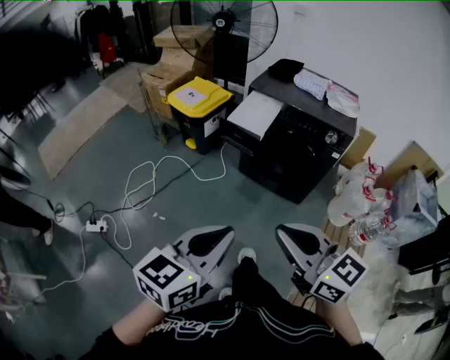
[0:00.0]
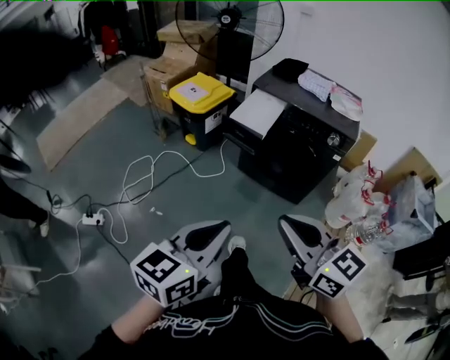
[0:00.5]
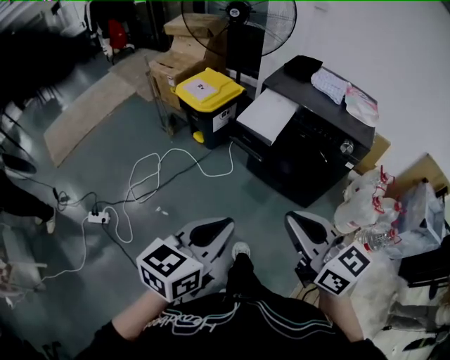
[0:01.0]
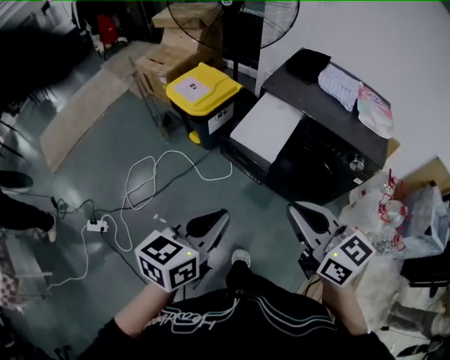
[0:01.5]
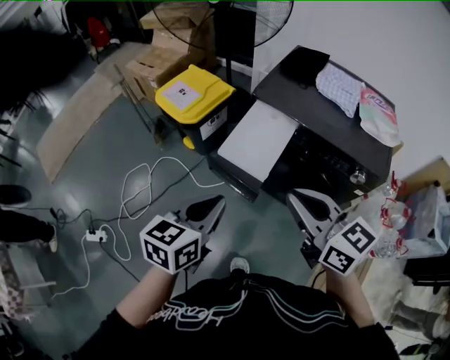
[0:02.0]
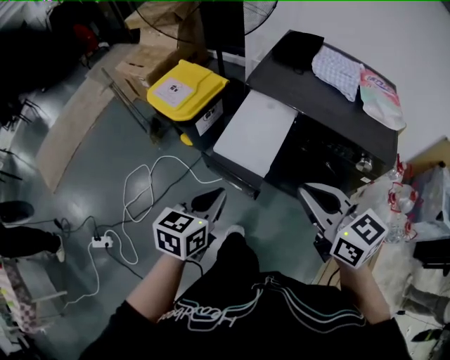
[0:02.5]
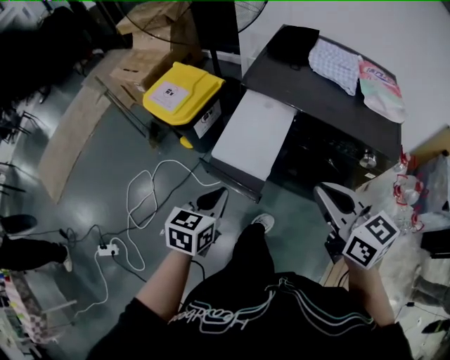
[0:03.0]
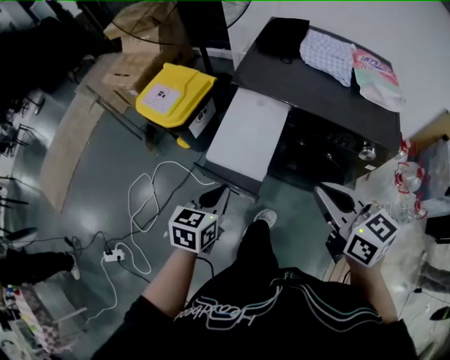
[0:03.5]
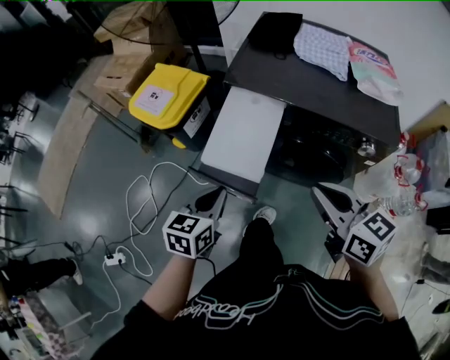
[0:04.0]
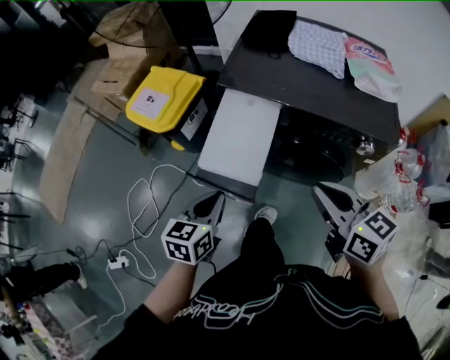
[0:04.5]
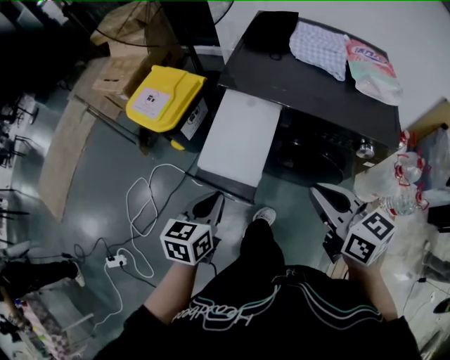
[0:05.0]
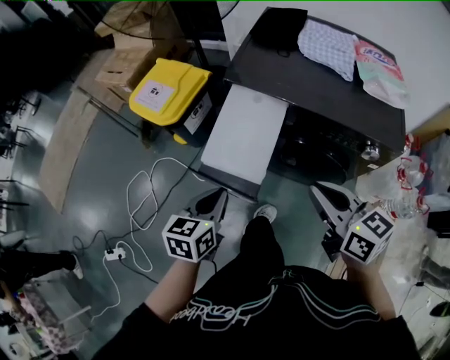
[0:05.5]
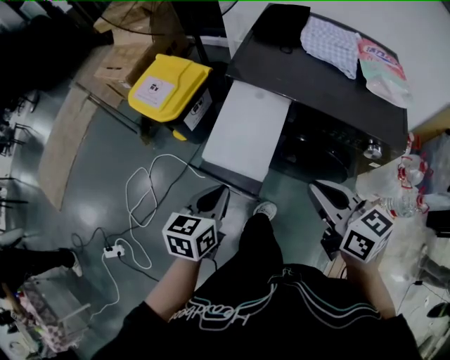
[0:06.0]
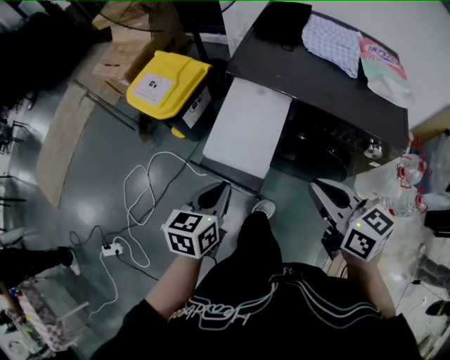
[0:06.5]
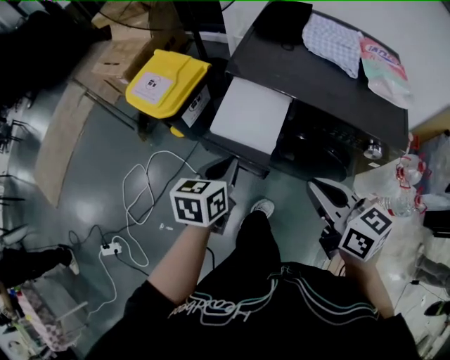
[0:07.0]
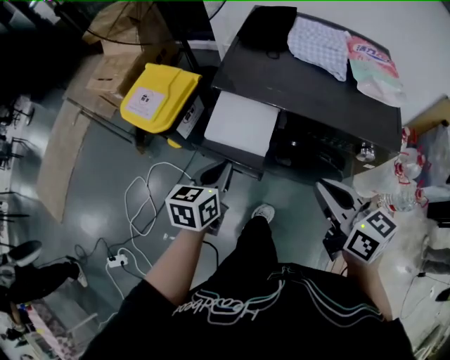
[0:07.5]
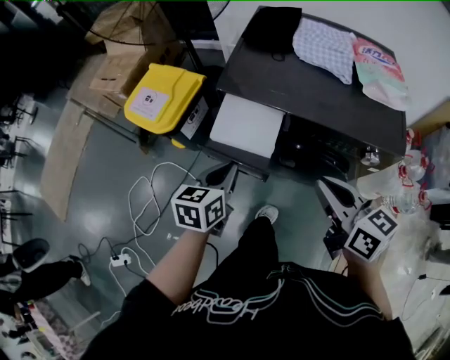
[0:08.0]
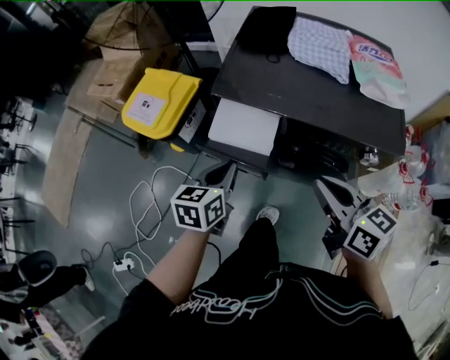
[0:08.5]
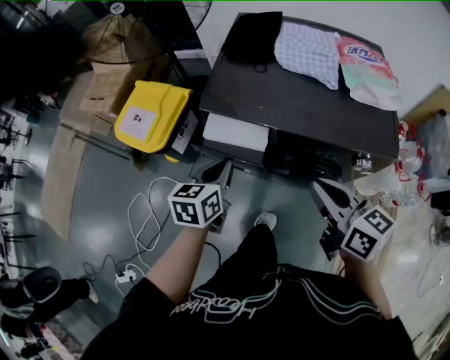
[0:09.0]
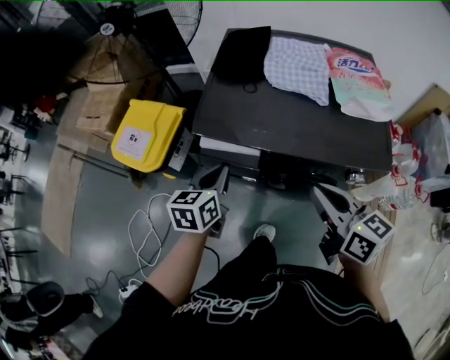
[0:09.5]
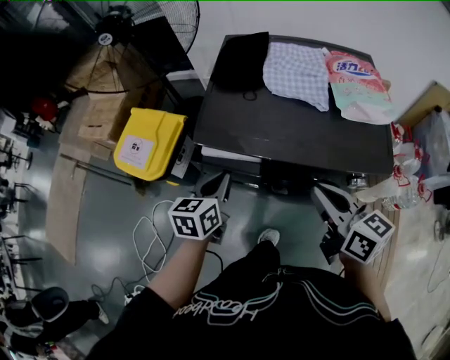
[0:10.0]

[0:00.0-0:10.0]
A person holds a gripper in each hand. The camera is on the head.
0:00.0 to 0:02.0: The two grippers go about 40 cm forward.
0:02.0 to 0:04.0: The left gripper goes approximately 15 cm downward and forward. The right gripper heads downward and to the right, covering some 10 cm.
0:04.0 to 0:06.0: The grippers move only a little.
0:06.0 to 0:08.0: The right gripper changes place by some 5 cm. Meanwhile the left gripper goes some 10 cm forward.
0:08.0 to 0:10.0: The left gripper is displaced forward by roughly 10 cm; the right gripper is displaced forward and to the right by about 10 cm.

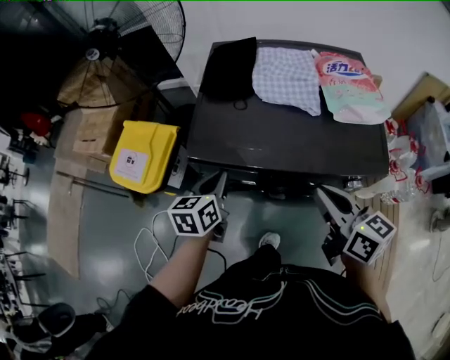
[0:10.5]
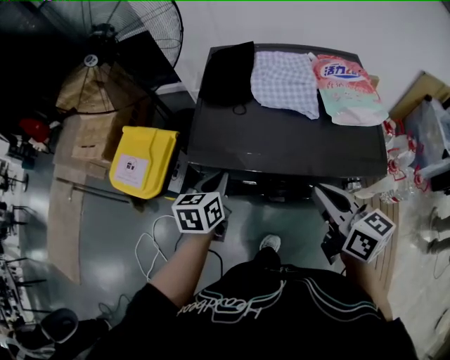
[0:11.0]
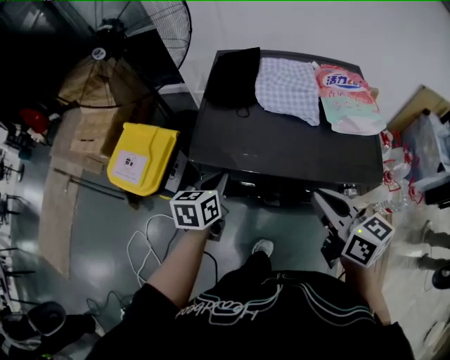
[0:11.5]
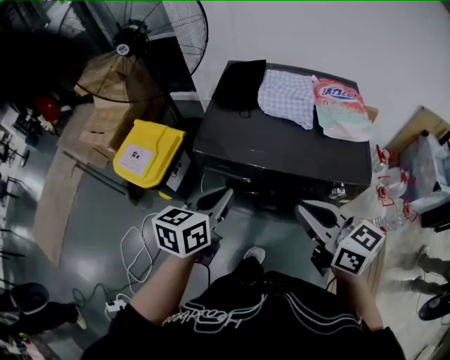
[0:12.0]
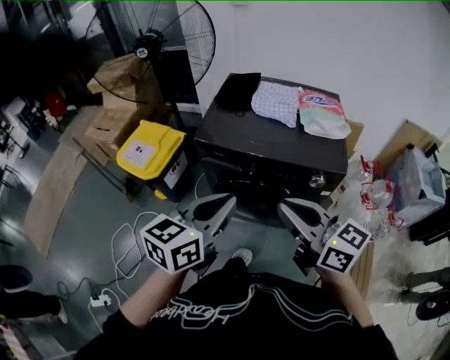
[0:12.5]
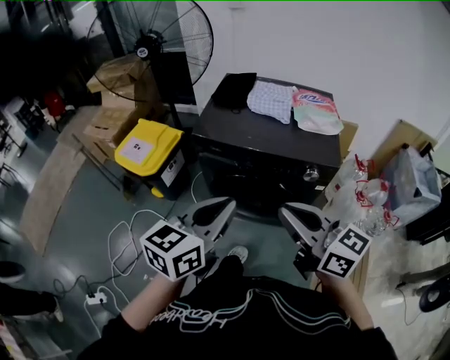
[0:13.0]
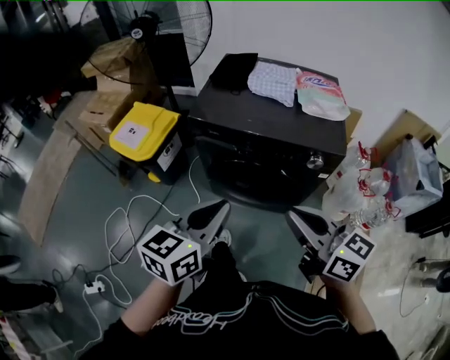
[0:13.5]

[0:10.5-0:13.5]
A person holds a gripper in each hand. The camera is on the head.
0:10.5 to 0:12.0: The right gripper is displaced backward and upward by about 10 cm; the left gripper moves backward and upward, some 15 cm.
0:12.0 to 0:13.5: The grippers both shift backward by roughly 20 cm.

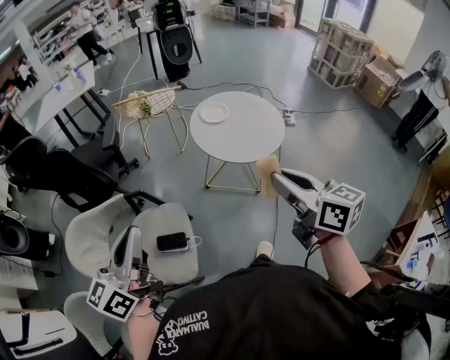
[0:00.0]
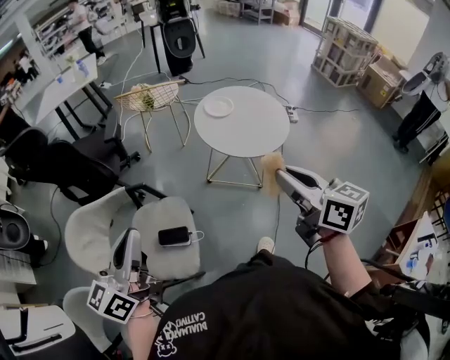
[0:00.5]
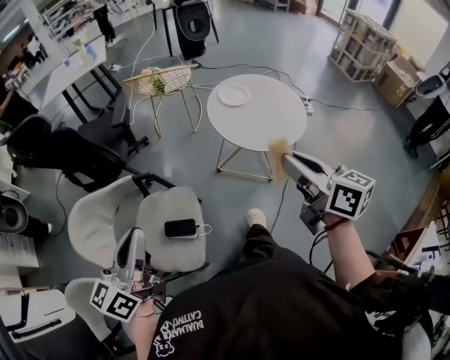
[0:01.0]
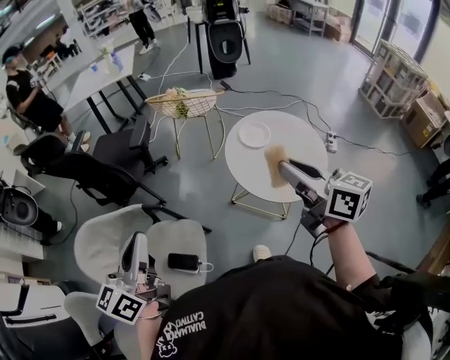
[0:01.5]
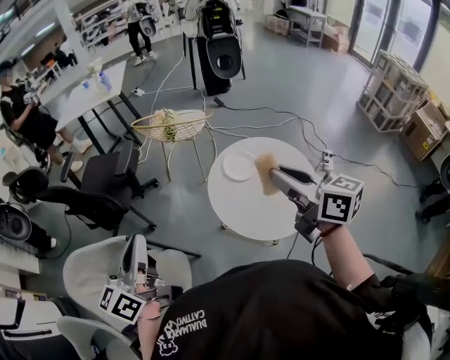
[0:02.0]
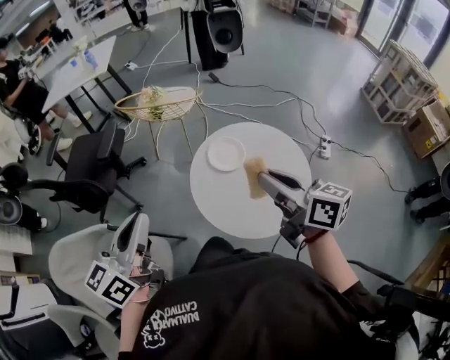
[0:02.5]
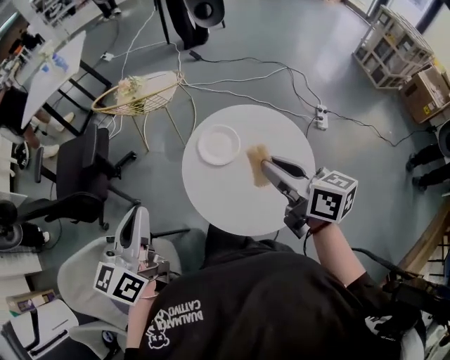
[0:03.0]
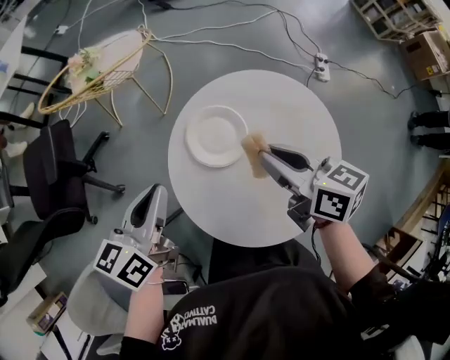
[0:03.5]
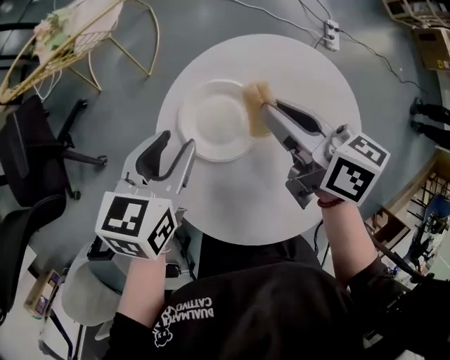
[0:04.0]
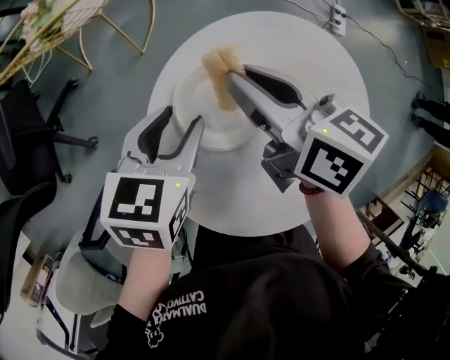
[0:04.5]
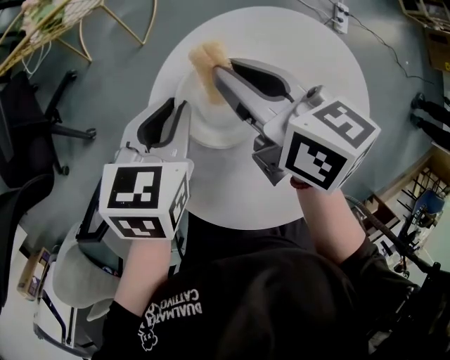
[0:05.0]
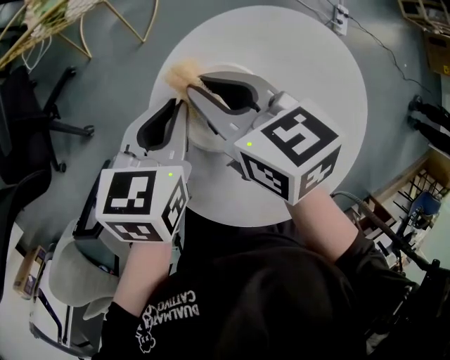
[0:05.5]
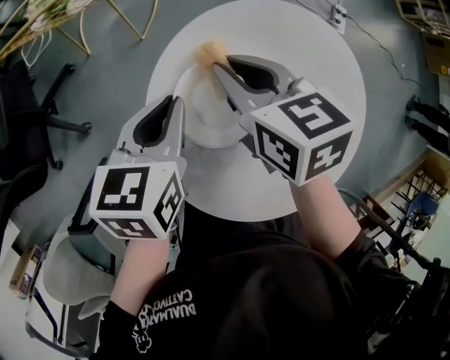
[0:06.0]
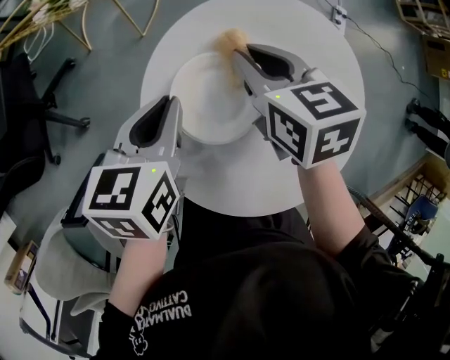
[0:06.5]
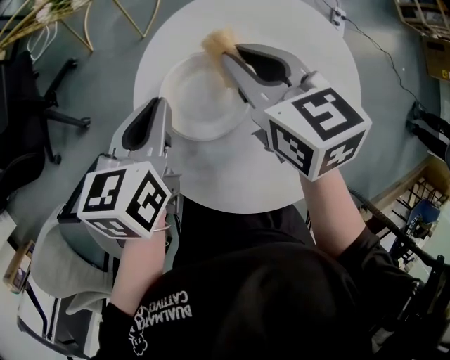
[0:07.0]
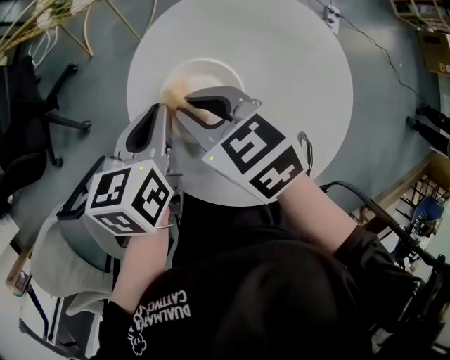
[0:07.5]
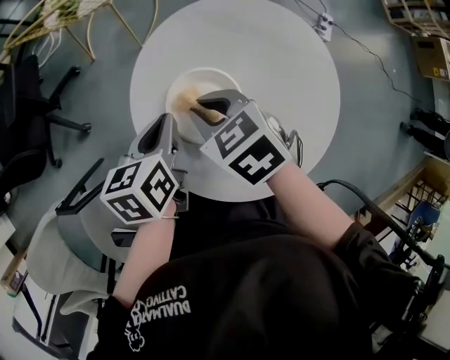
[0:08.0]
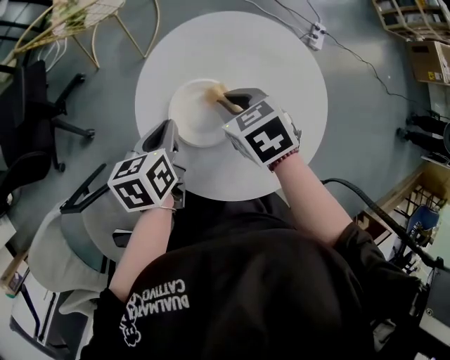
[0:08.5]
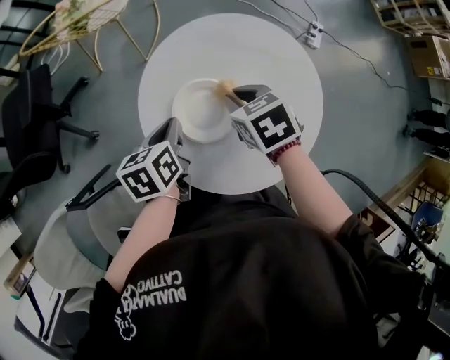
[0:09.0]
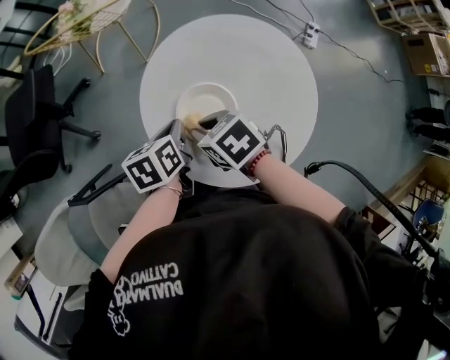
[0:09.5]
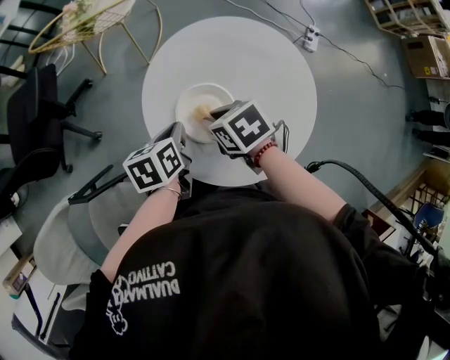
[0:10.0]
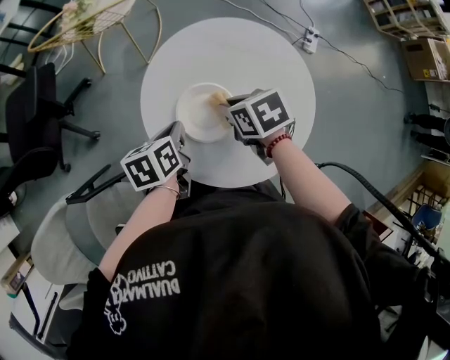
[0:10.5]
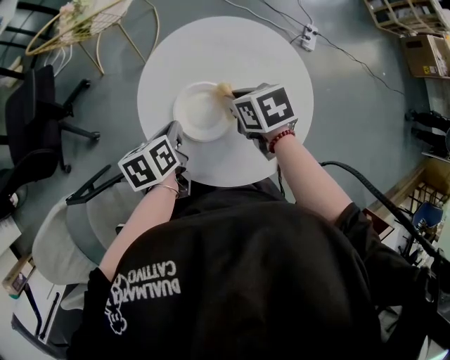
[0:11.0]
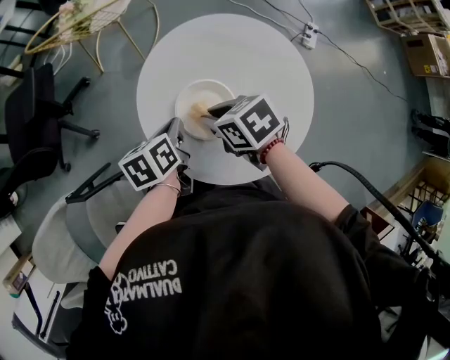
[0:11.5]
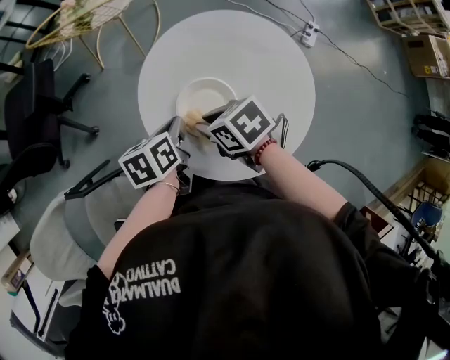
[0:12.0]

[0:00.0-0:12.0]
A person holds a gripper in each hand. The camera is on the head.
0:00.0 to 0:02.0: The left gripper travels forward and to the right by some 30 cm; the right gripper moves forward, some 35 cm.
0:02.0 to 0:04.0: The right gripper moves downward and forward, approximately 50 cm, and changes its angle by approximately 30 degrees. The left gripper moves forward, downward and to the right, approximately 60 cm, tips its fingers downward by some 50 degrees, and opens up.
0:04.0 to 0:06.0: The left gripper closes; the right gripper is displaced to the left by some 10 cm, and changes its angle by roughly 30 degrees.
0:06.0 to 0:08.0: Both grippers move backward, some 10 cm. The right gripper turns by approximately 30 degrees.
0:08.0 to 0:10.0: The right gripper shifts approximately 5 cm backward, and moves some 10 cm to the right and comes back.
0:10.0 to 0:12.0: The right gripper goes to the right and returns, about 10 cm each way.

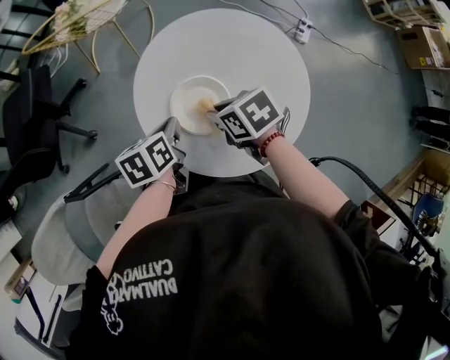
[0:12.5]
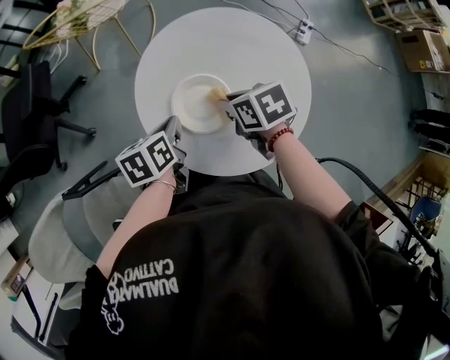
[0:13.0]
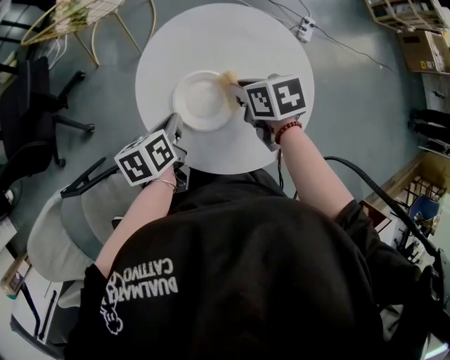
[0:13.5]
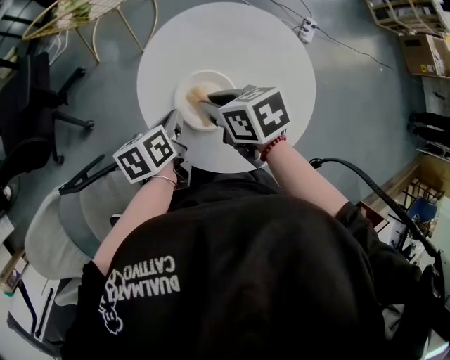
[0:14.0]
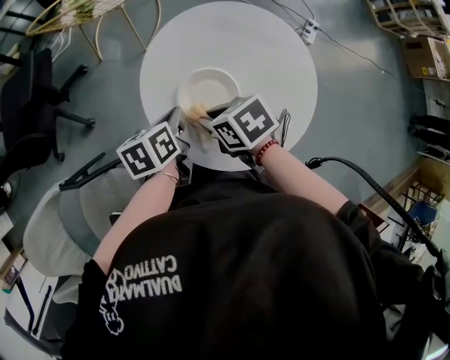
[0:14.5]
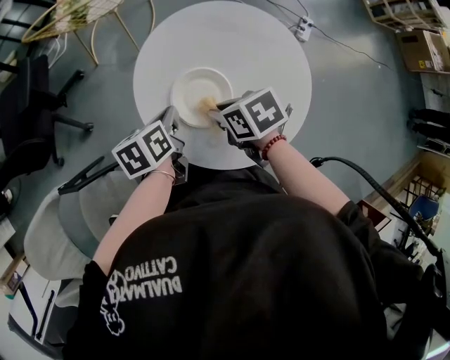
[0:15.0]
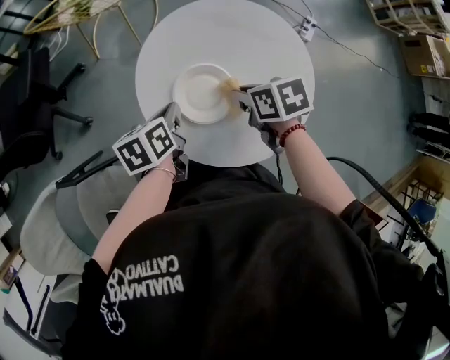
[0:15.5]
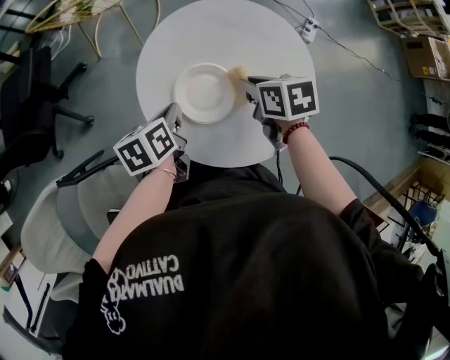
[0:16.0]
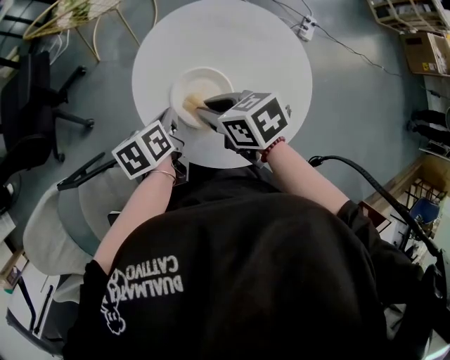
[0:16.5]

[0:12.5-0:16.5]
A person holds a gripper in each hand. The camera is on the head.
0:12.5 to 0:14.5: The right gripper changes place by approximately 5 cm.
0:14.5 to 0:16.5: The right gripper reaches about 15 cm to the right, then returns.
